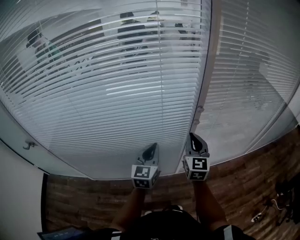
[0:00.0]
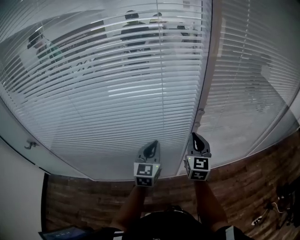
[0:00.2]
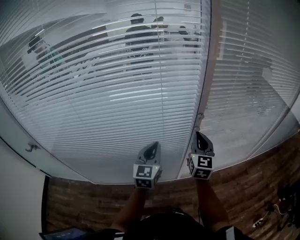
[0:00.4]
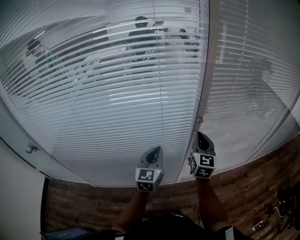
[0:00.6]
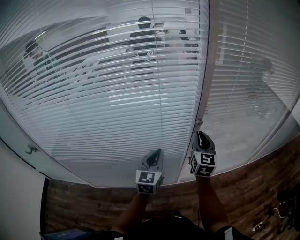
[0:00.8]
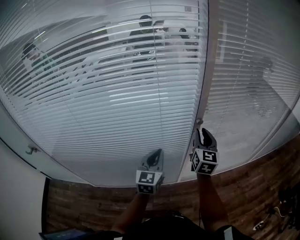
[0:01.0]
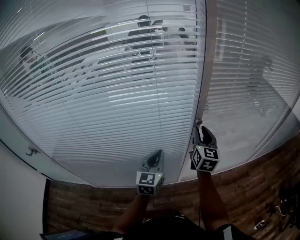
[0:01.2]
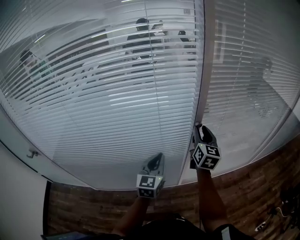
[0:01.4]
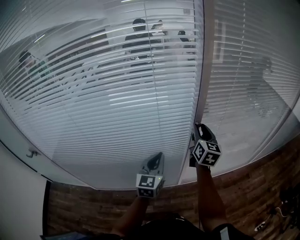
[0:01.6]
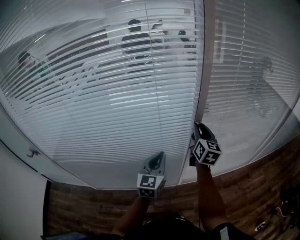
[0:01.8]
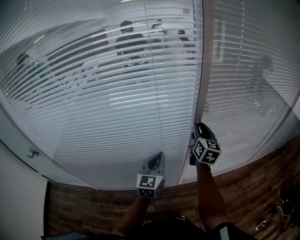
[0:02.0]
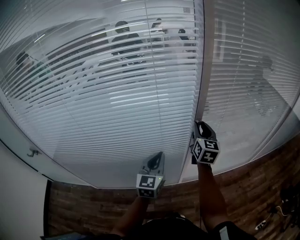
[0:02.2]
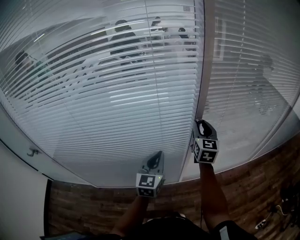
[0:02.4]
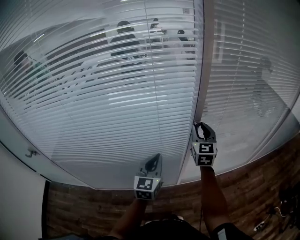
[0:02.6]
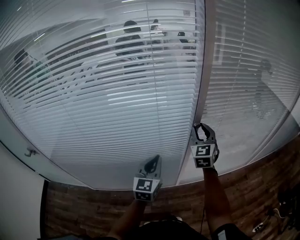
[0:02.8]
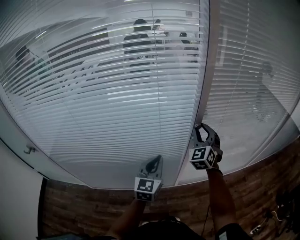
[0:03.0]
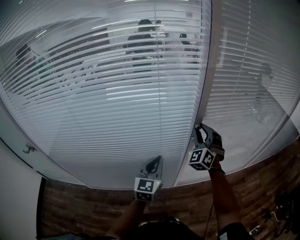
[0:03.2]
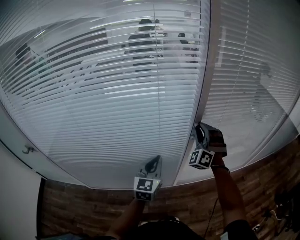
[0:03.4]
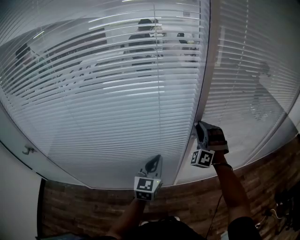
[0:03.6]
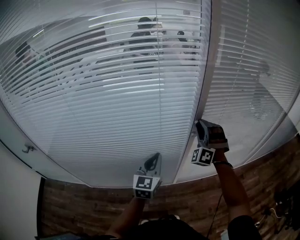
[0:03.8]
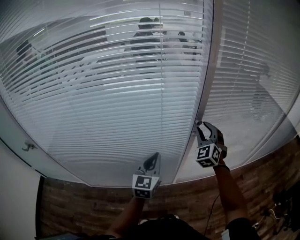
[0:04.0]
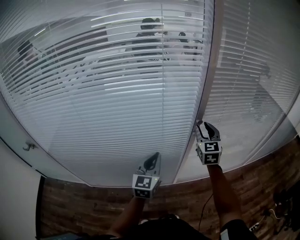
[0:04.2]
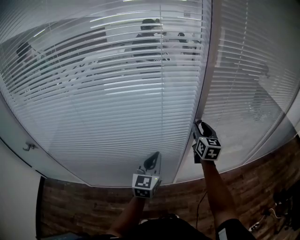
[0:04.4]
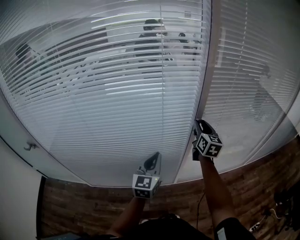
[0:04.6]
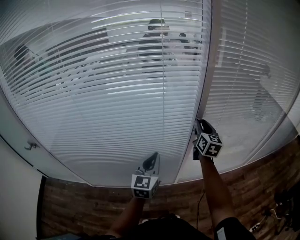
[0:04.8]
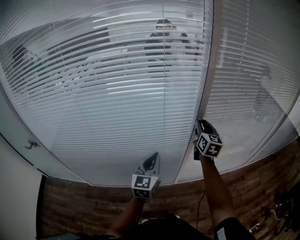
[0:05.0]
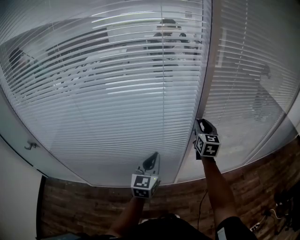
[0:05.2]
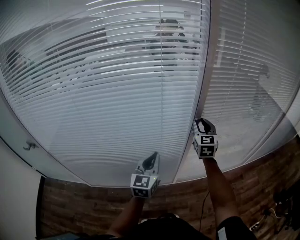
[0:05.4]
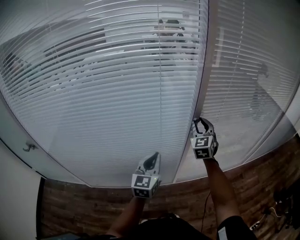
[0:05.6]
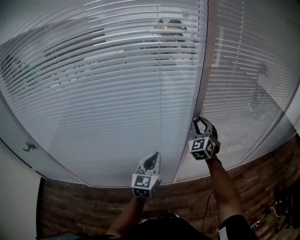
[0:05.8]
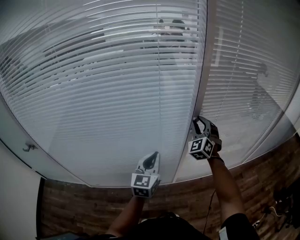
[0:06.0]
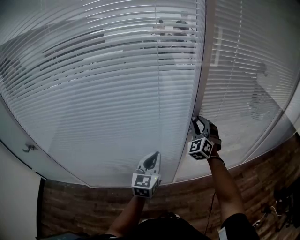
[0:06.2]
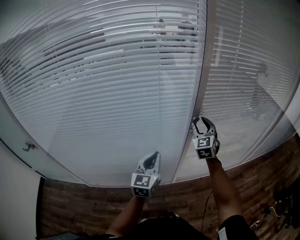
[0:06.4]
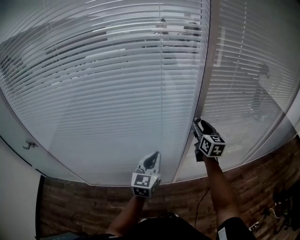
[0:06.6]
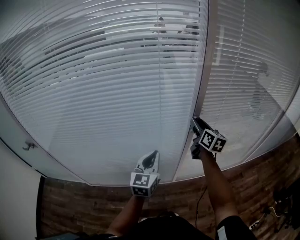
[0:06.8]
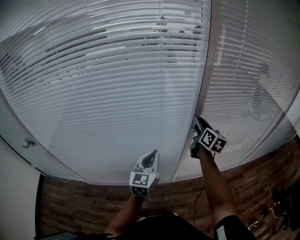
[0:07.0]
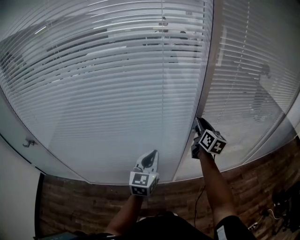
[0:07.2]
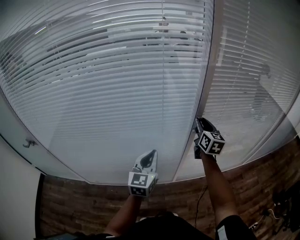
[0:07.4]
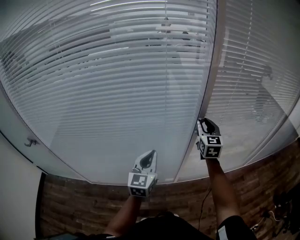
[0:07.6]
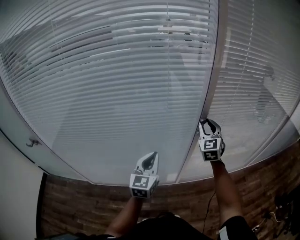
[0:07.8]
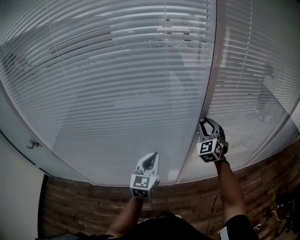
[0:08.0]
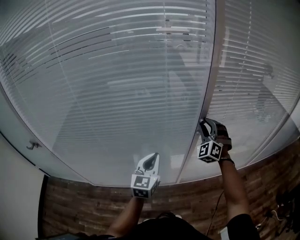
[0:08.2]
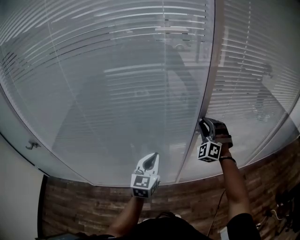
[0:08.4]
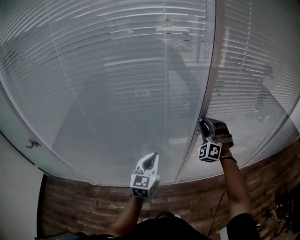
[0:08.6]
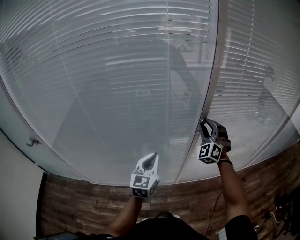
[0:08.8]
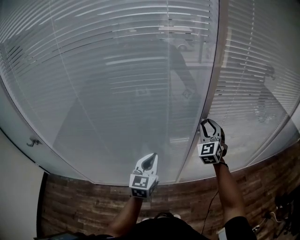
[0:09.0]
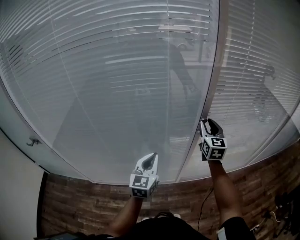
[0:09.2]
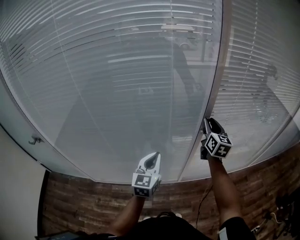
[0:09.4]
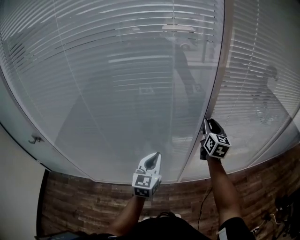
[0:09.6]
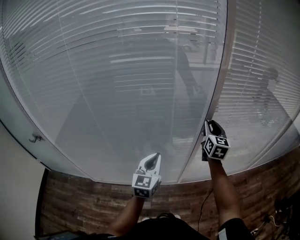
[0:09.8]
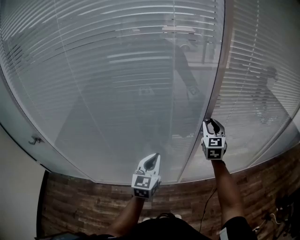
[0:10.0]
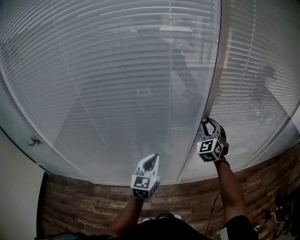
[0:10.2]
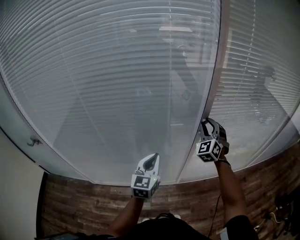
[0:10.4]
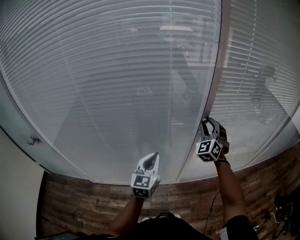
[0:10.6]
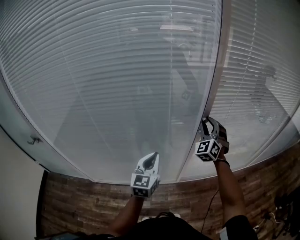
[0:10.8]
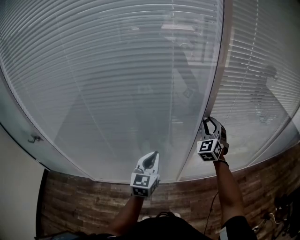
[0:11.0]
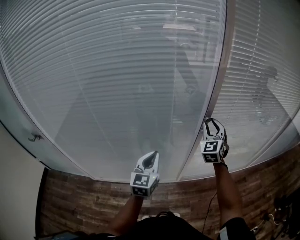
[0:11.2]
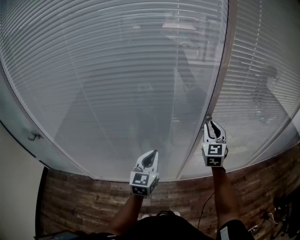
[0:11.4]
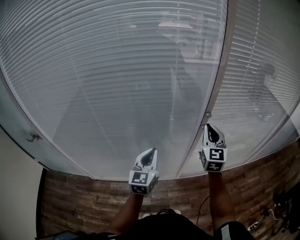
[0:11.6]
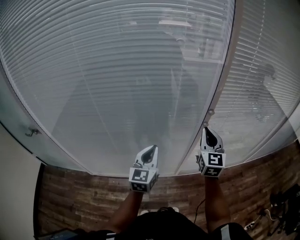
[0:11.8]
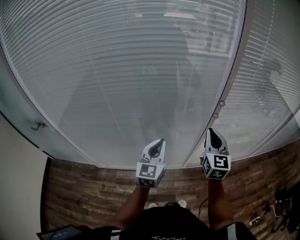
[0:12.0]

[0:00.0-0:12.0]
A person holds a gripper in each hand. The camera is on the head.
0:00.0 to 0:01.6: The right gripper travels forward by roughly 10 cm, changes its angle by roughly 20 degrees, and opens up.
0:01.6 to 0:03.0: The right gripper twists about 60 degrees counterclockwise, seen from behind.
0:03.0 to 0:04.4: The right gripper rolls clockwise, seen from behind, by about 50 degrees.
0:04.4 to 0:06.0: The right gripper rolls counterclockwise, seen from behind, by some 60 degrees.
0:06.0 to 0:07.6: The right gripper twists some 40 degrees clockwise, seen from behind.
0:07.6 to 0:09.0: The right gripper changes its angle by approximately 30 degrees.
0:10.4 to 0:12.0: The left gripper ends up some 5 cm from where it was; the right gripper travels backward by some 15 cm, twists about 50 degrees clockwise, seen from behind, and closes its fingers.

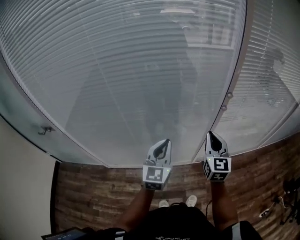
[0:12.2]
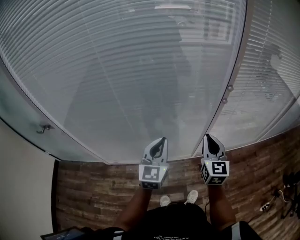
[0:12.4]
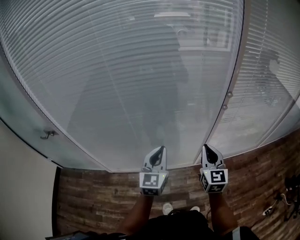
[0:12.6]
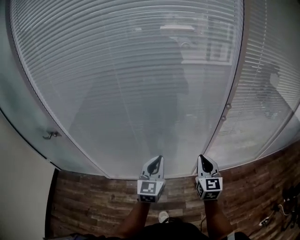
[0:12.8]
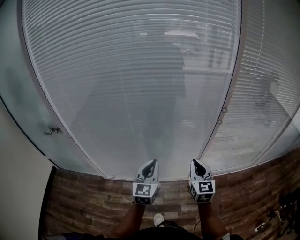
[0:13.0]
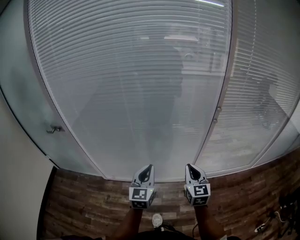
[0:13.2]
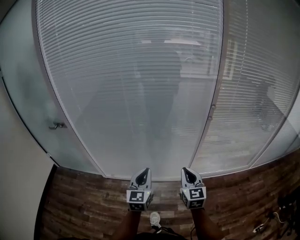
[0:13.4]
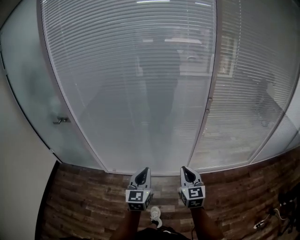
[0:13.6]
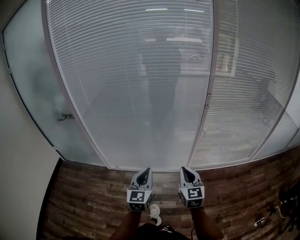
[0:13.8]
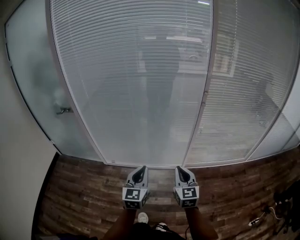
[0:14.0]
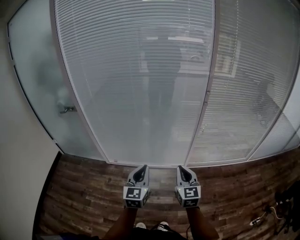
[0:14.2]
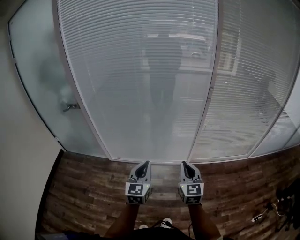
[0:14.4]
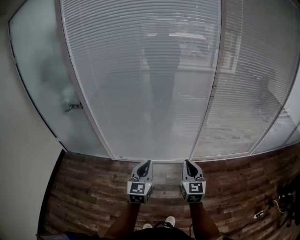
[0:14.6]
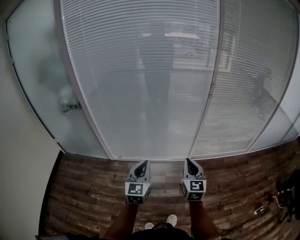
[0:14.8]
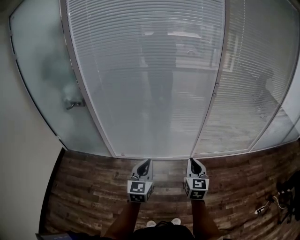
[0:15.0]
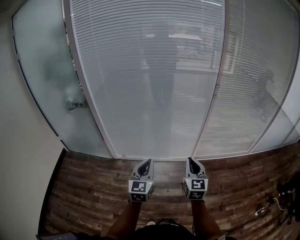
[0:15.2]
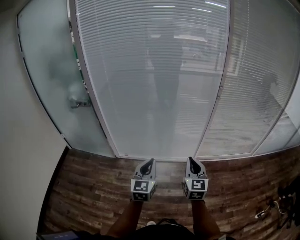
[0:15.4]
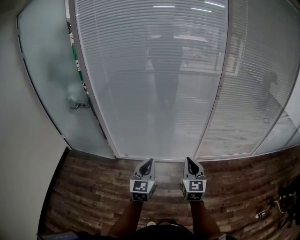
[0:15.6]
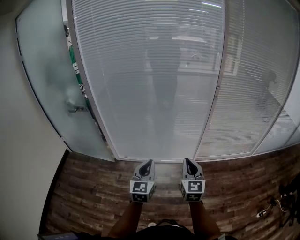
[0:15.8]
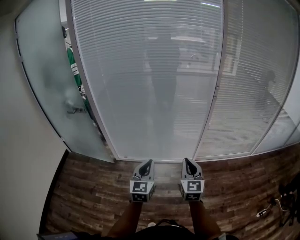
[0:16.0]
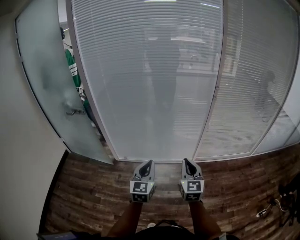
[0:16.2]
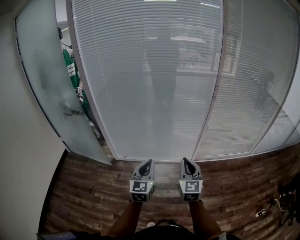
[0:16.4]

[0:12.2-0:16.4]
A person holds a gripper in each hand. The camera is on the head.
0:12.2 to 0:13.6: Both grippers move backward, roughly 25 cm.
0:13.6 to 0:15.0: Both grippers travel together backward and to the left, roughly 15 cm.
0:15.0 to 0:16.4: The right gripper moves roughly 5 cm.

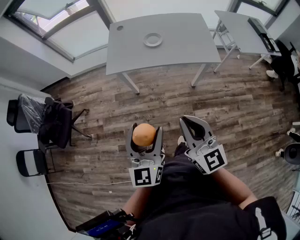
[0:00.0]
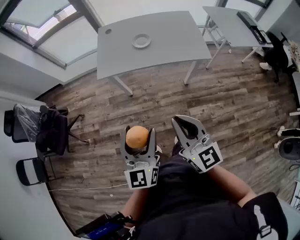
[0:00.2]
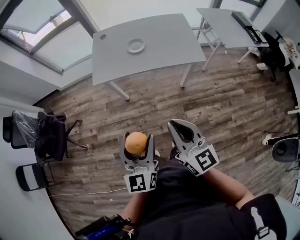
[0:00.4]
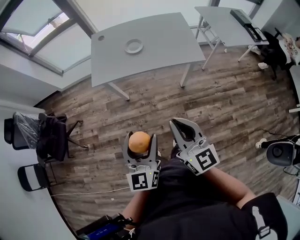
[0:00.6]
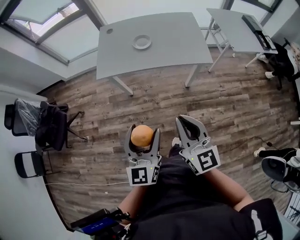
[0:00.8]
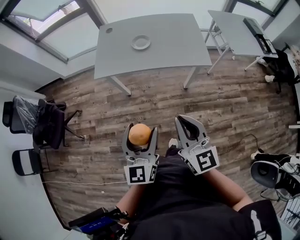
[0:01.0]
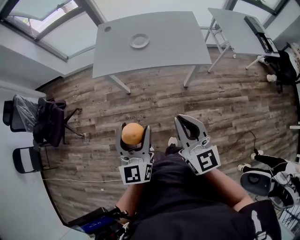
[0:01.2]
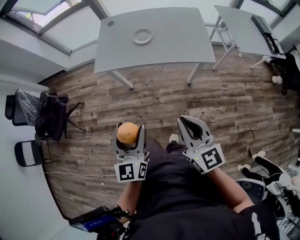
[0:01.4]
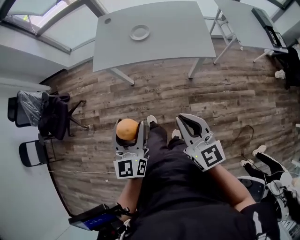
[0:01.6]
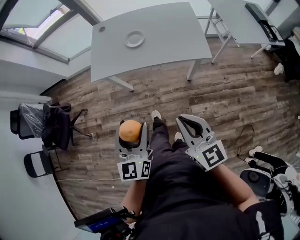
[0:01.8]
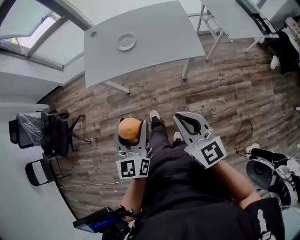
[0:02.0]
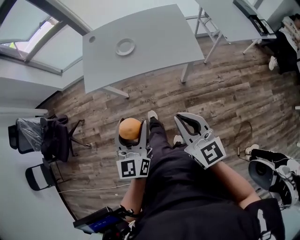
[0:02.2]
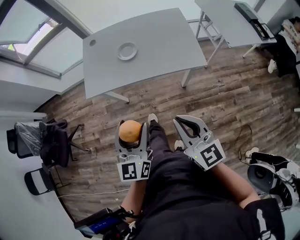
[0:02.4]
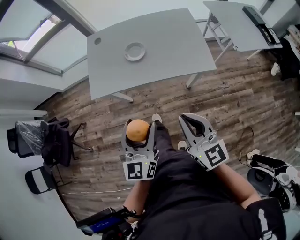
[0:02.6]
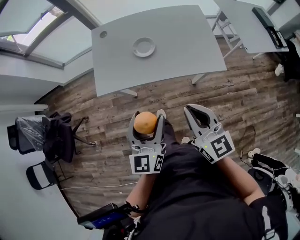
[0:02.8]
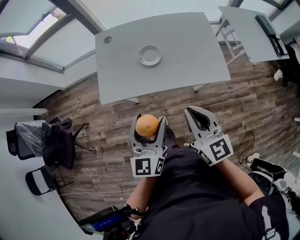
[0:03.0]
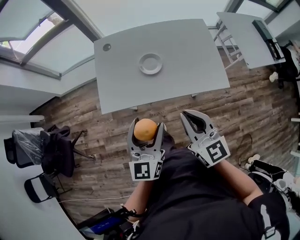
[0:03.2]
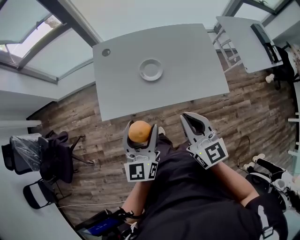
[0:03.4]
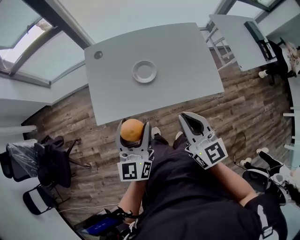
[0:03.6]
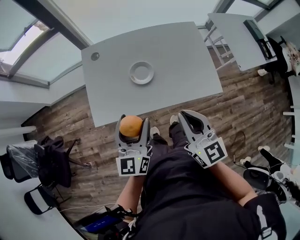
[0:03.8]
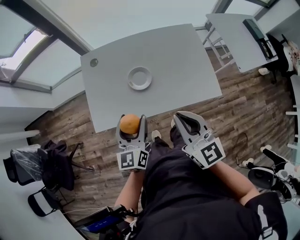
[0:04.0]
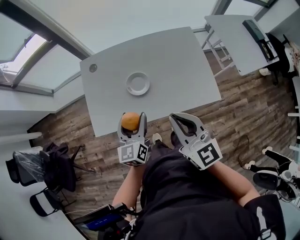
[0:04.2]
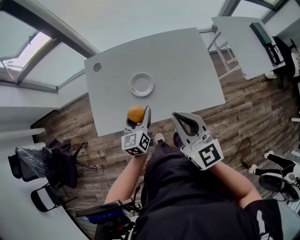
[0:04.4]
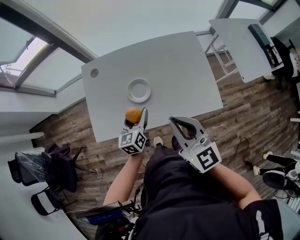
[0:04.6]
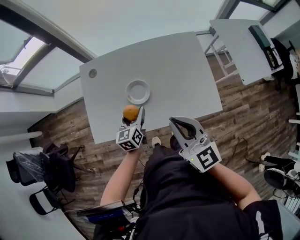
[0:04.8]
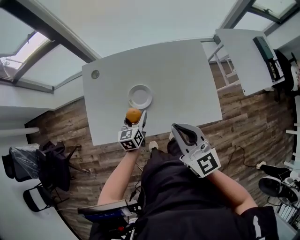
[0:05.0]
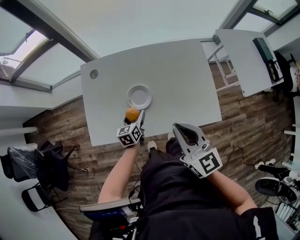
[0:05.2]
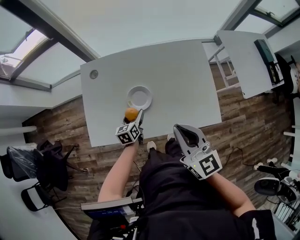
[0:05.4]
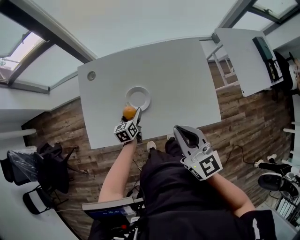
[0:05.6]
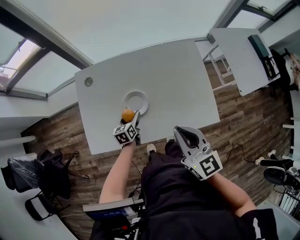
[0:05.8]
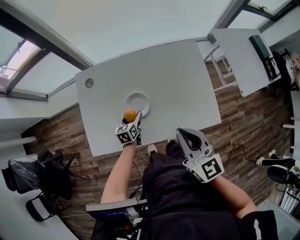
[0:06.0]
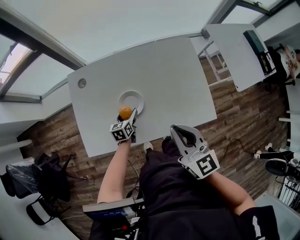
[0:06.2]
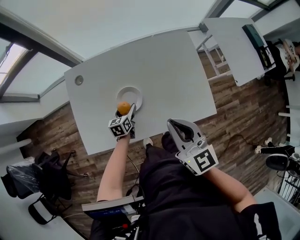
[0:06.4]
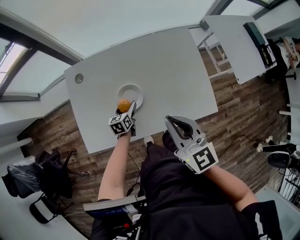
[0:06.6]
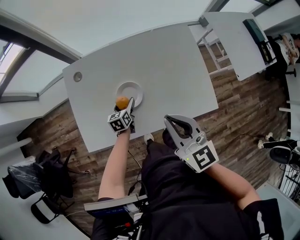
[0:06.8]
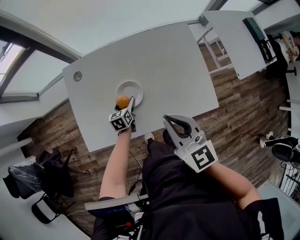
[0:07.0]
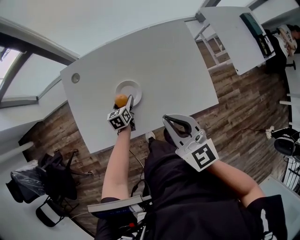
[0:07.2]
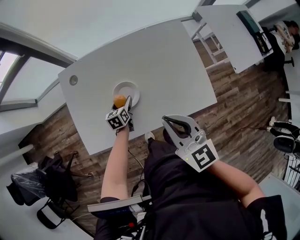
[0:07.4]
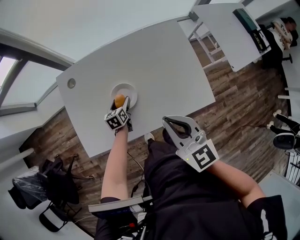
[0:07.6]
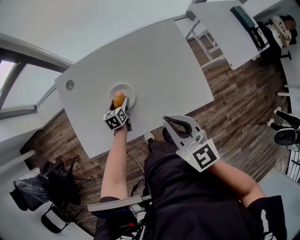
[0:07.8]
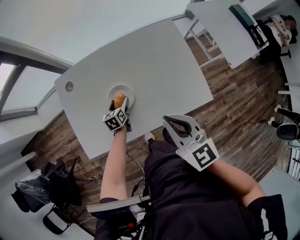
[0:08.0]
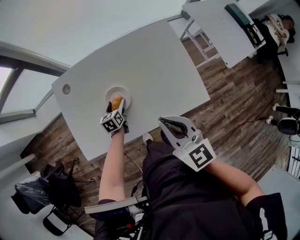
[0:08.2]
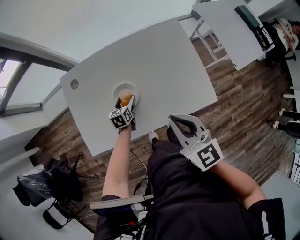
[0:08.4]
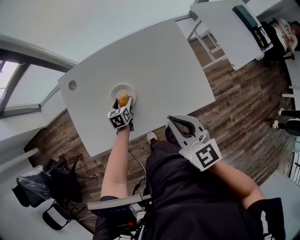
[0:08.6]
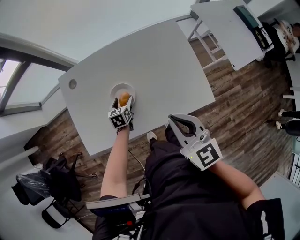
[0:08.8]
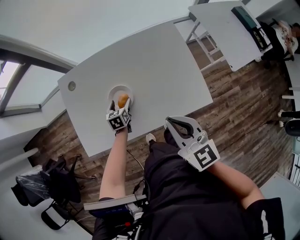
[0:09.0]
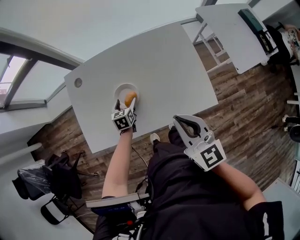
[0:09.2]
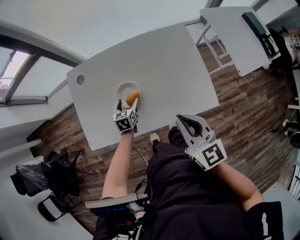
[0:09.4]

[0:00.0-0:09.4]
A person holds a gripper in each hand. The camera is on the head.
0:00.0 to 0:01.6: The two grippers go roughly 10 cm to the right and downward.
0:01.6 to 0:03.2: The two grippers go about 25 cm forward.
0:03.2 to 0:04.8: The right gripper heads forward and to the right, covering some 15 cm. The left gripper moves forward and downward, some 30 cm, and rotates some 20 degrees.
0:04.8 to 0:06.2: The left gripper travels downward and forward by roughly 15 cm. The right gripper moves roughly 5 cm.
0:06.2 to 0:07.8: The grippers stay close to where they were, moving slightly.
0:07.8 to 0:09.4: The right gripper moves to the right, some 5 cm; the left gripper changes place by about 5 cm.
